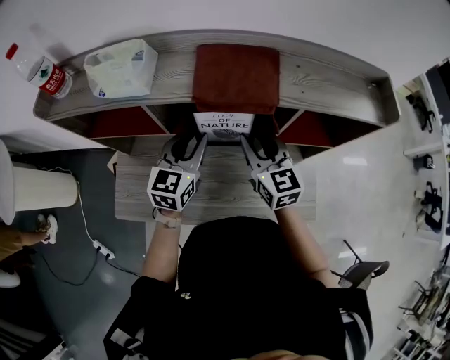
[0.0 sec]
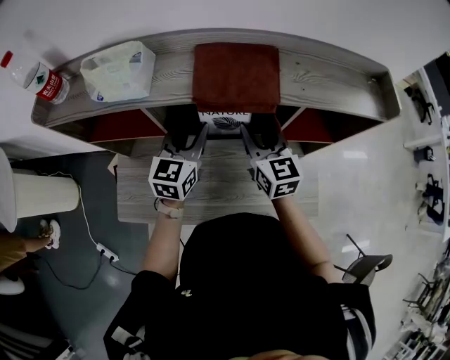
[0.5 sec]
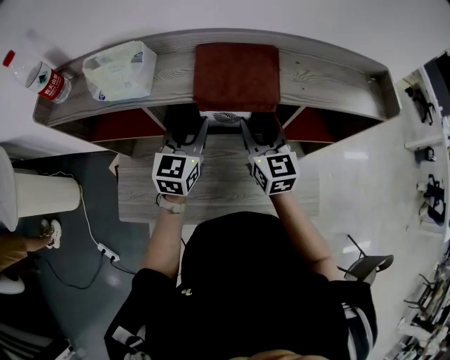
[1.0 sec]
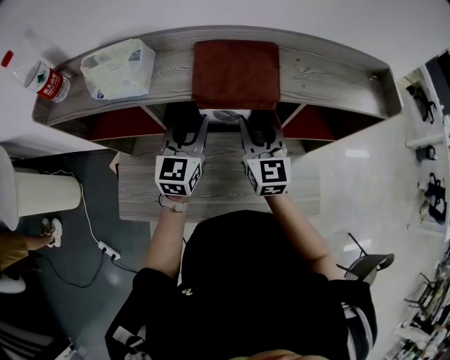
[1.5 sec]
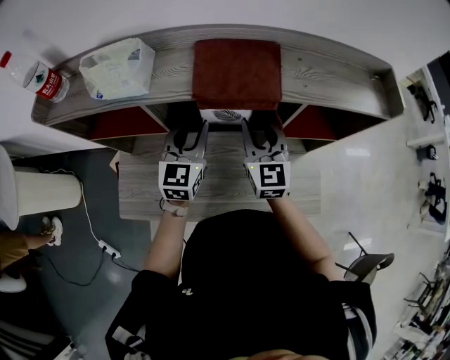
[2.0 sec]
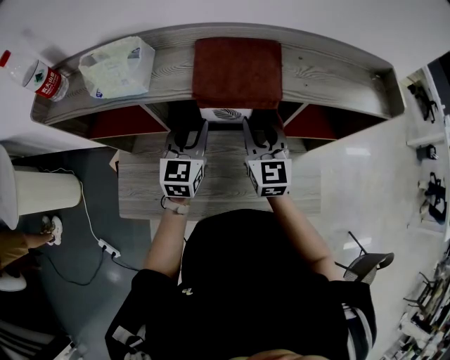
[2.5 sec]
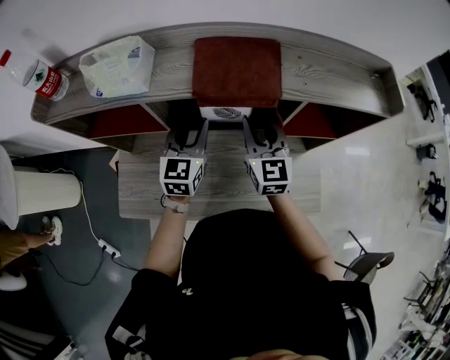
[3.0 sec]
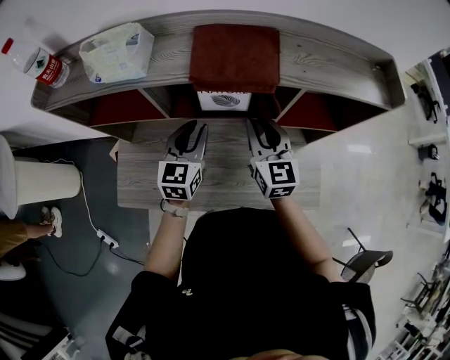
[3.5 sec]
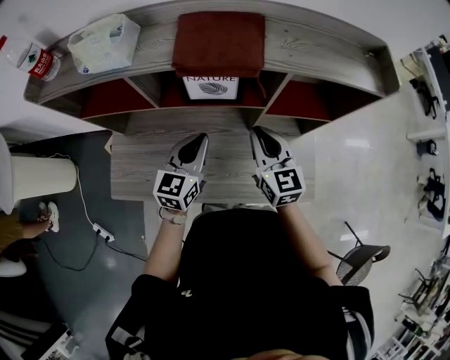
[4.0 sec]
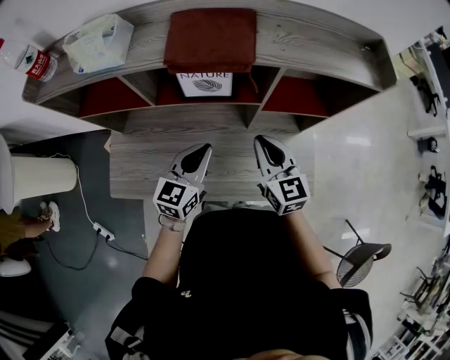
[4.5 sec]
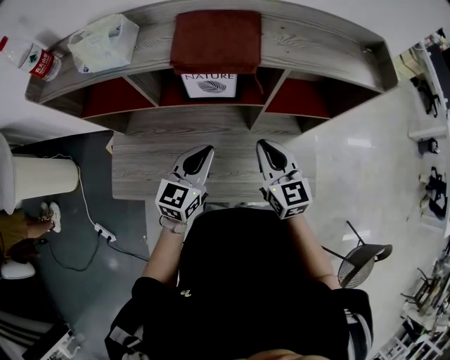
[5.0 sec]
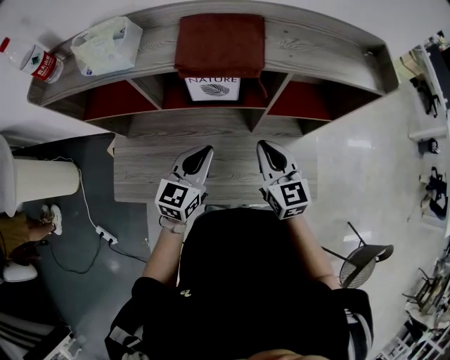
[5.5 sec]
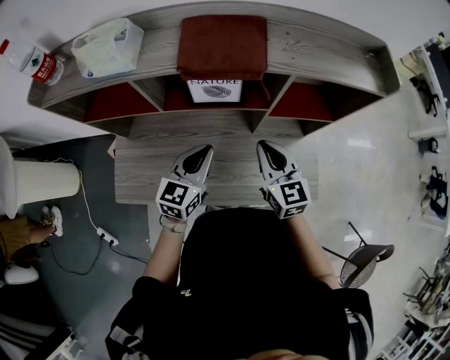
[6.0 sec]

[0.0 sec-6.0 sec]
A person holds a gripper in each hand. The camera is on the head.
0.0 sec to 2.0 sec: There are only small adjustments of the grippers.
2.0 sec to 4.0 sec: The left gripper is displaced backward and downward by roughly 10 cm, and closes; the right gripper is displaced backward by about 10 cm, and closes its fingers.
4.0 sec to 6.0 sec: The grippers make only small movements.

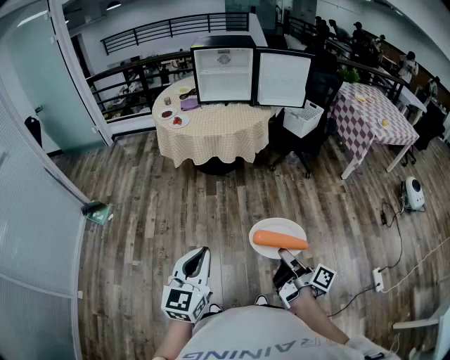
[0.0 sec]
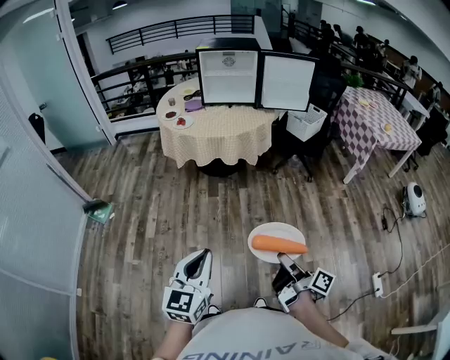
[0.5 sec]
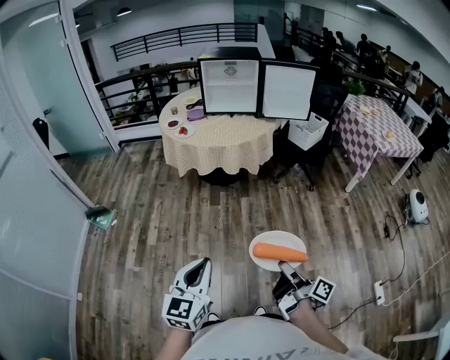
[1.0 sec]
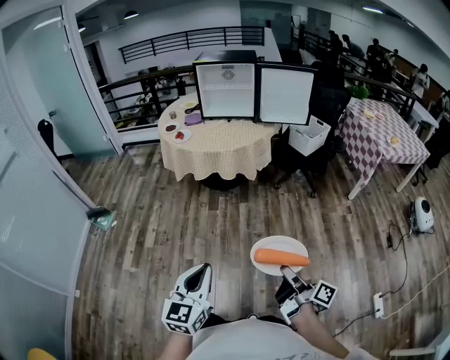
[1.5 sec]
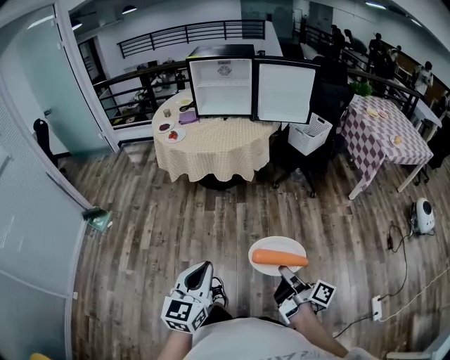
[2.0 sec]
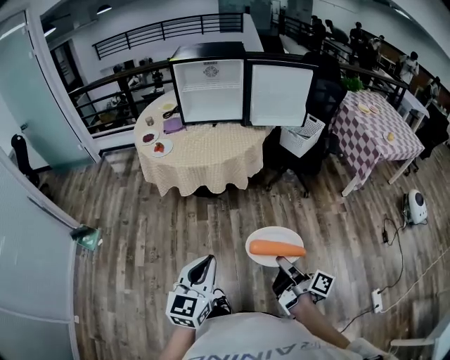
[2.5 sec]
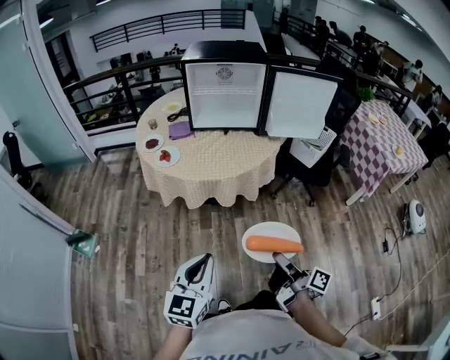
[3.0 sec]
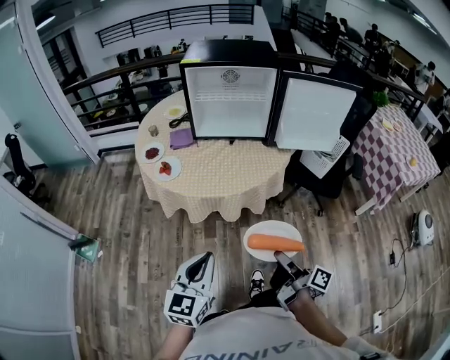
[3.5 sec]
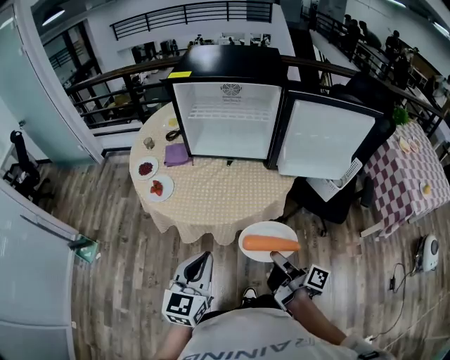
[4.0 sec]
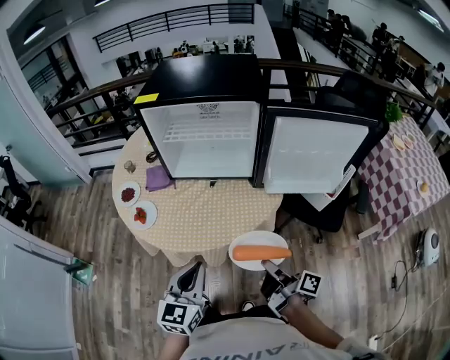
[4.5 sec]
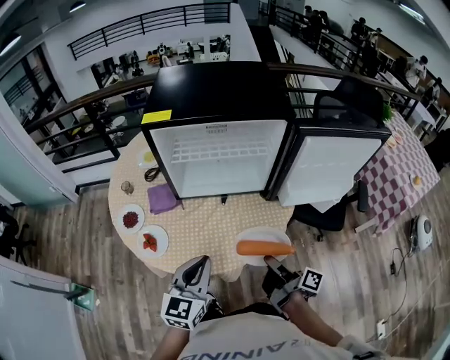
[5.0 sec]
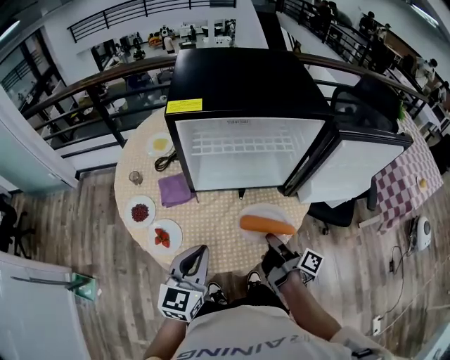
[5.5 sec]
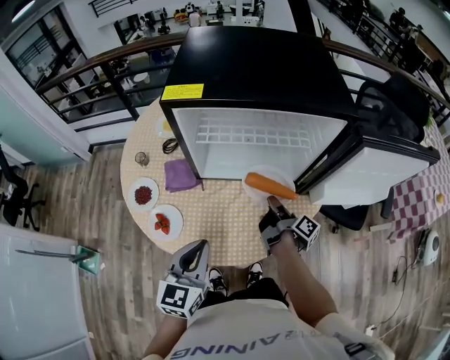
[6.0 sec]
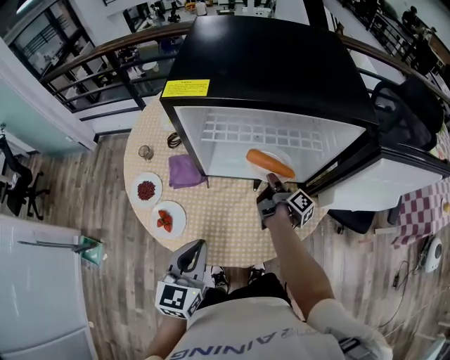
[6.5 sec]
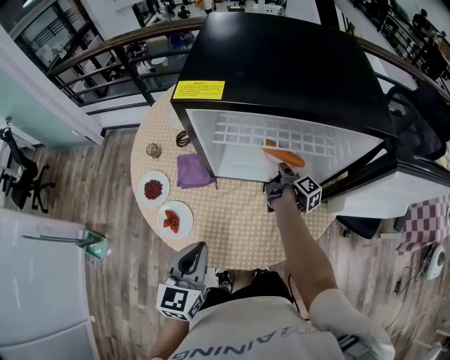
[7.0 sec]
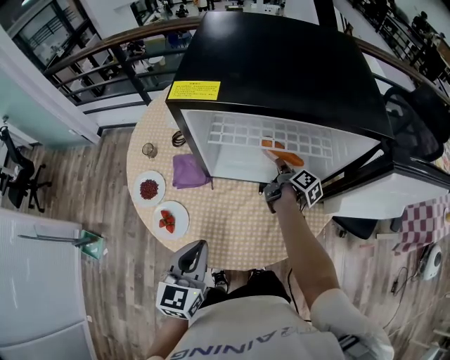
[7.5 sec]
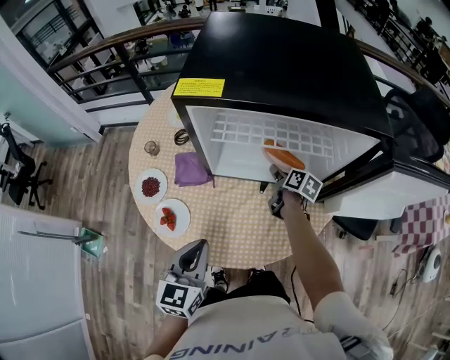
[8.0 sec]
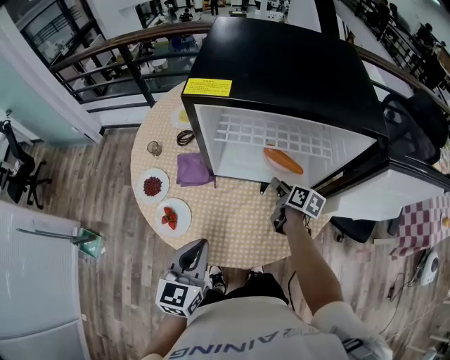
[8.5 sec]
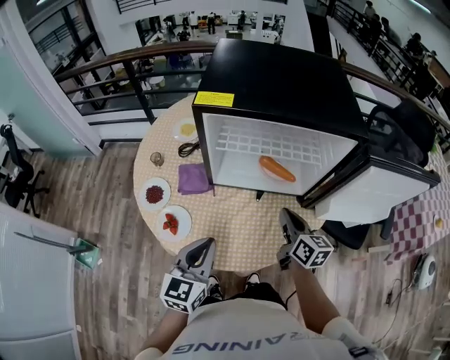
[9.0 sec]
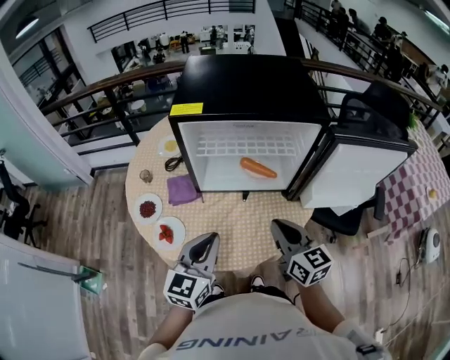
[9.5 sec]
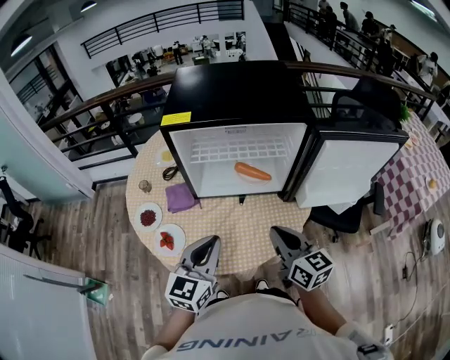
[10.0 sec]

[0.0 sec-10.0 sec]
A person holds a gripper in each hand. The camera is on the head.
0.0 sec to 2.0 sec: The left gripper moves some 15 cm.
2.0 sec to 4.0 sec: The left gripper moves roughly 50 cm.
4.0 sec to 6.0 sec: The left gripper moves about 25 cm.
8.0 sec to 10.0 sec: The left gripper heads upward, covering approximately 10 cm, and swivels some 20 degrees.

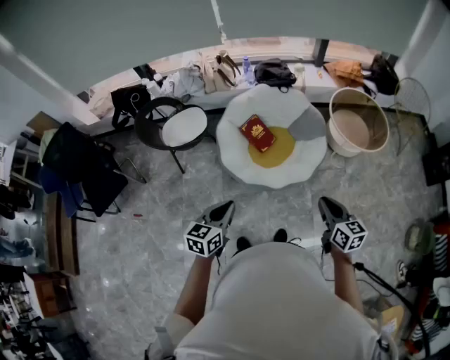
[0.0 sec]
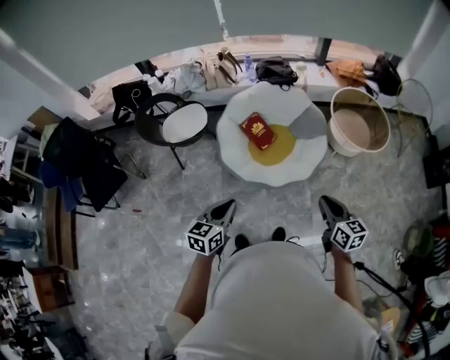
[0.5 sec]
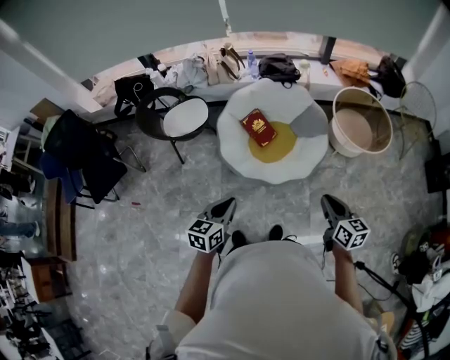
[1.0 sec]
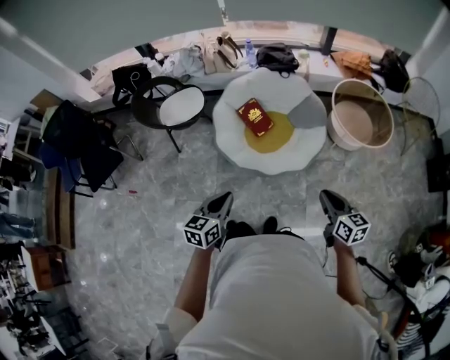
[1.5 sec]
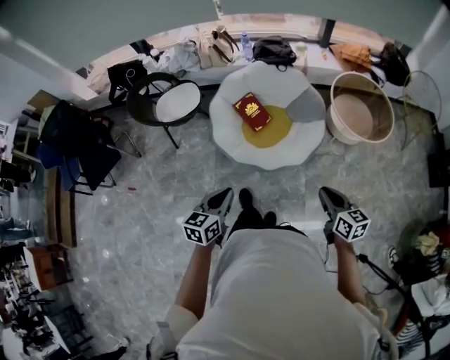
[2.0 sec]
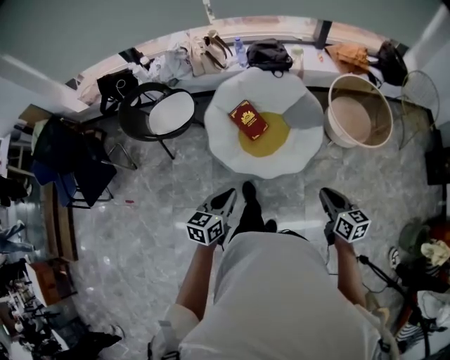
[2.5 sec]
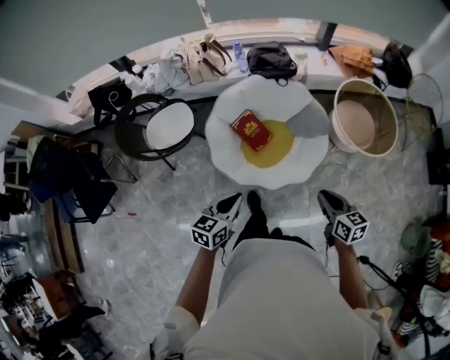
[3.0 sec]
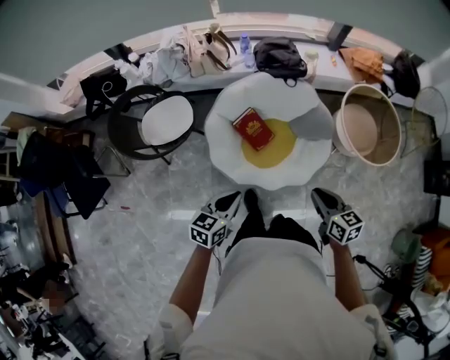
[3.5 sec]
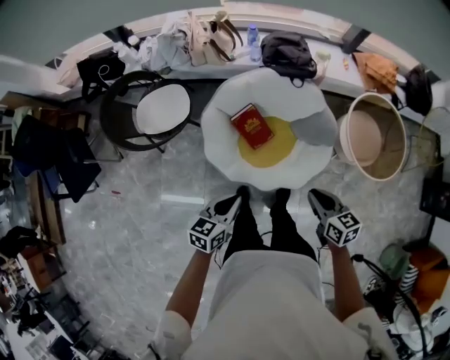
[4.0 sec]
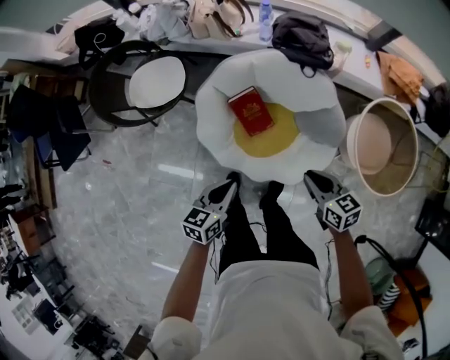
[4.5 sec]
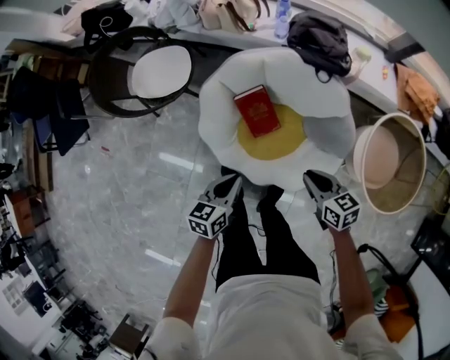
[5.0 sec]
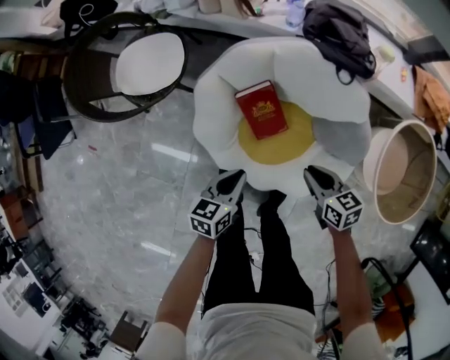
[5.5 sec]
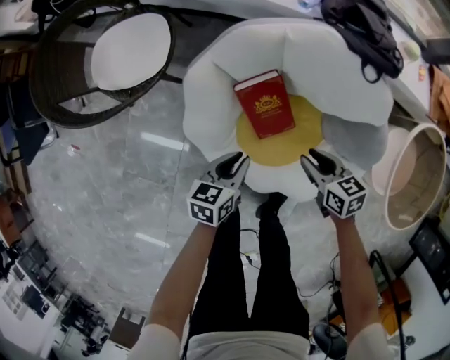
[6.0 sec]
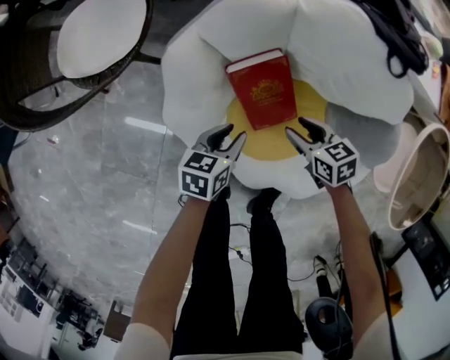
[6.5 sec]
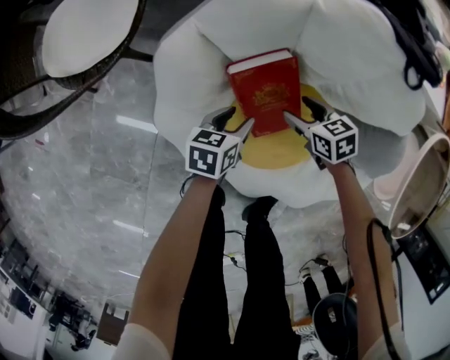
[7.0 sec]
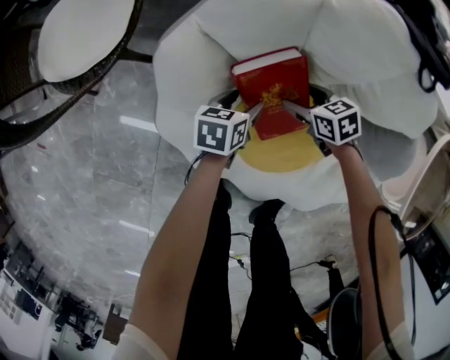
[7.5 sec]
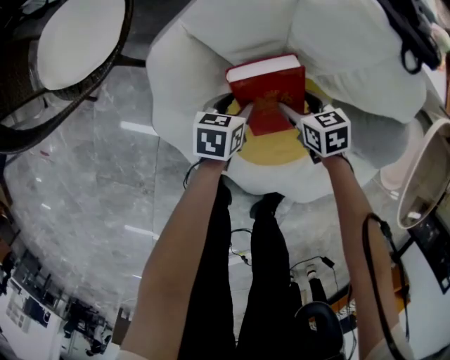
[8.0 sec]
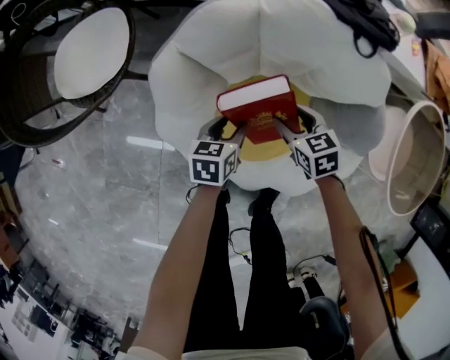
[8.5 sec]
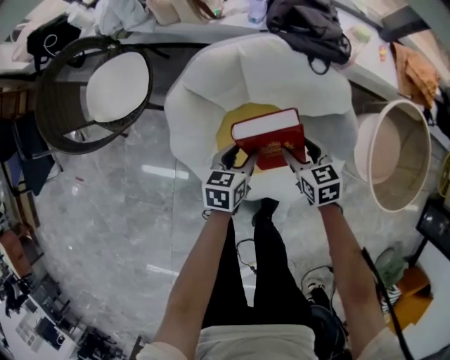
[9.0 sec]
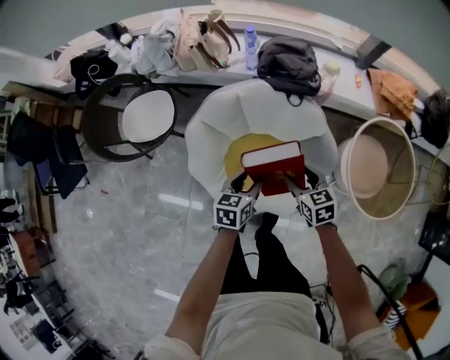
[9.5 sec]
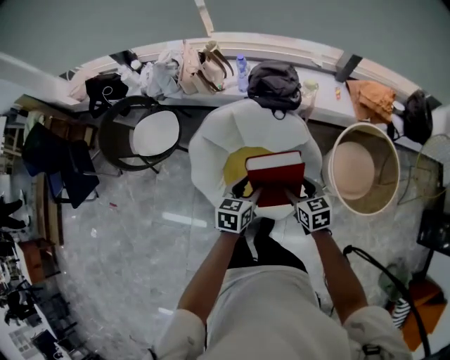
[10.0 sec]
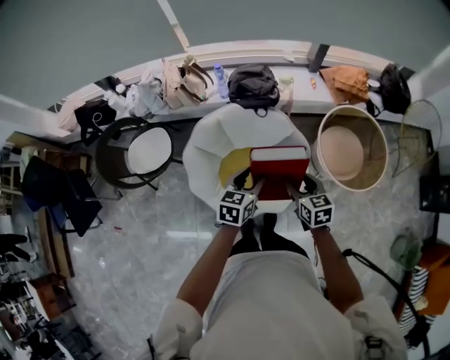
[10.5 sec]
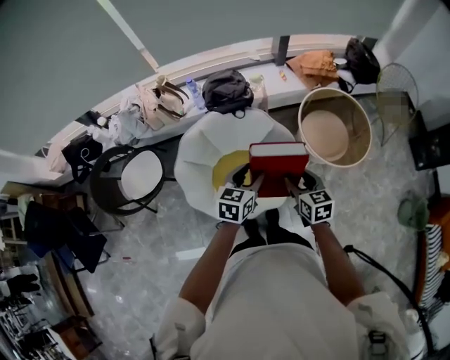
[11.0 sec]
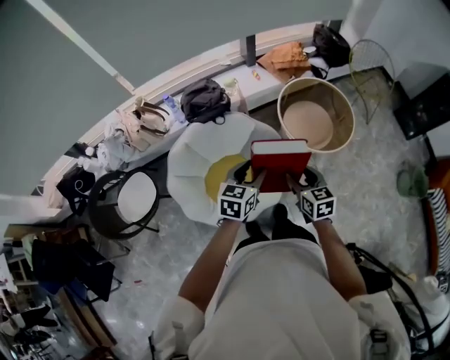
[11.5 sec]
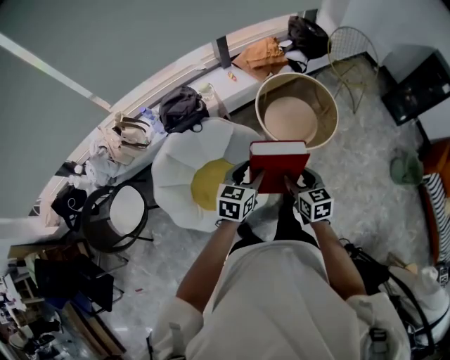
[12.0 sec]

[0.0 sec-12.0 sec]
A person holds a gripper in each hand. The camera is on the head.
0.0 sec to 2.0 sec: Both grippers move to the right, roughly 10 cm.
2.0 sec to 4.0 sec: Both grippers move forward, some 30 cm.
4.0 sec to 6.0 sec: Both grippers travel together downward and forward, roughly 40 cm. The right gripper turns by about 20 degrees.
6.0 sec to 8.0 sec: Both grippers travel together downward and forward, approximately 25 cm. The left gripper opens up, while the right gripper opens.
8.0 sec to 10.0 sec: Both grippers move upward, approximately 60 cm. The right gripper changes its angle by some 20 degrees.
10.0 sec to 12.0 sec: The right gripper changes place by roughly 25 cm, and changes its angle by some 40 degrees. The left gripper shifts by approximately 25 cm, and swivels about 40 degrees.
